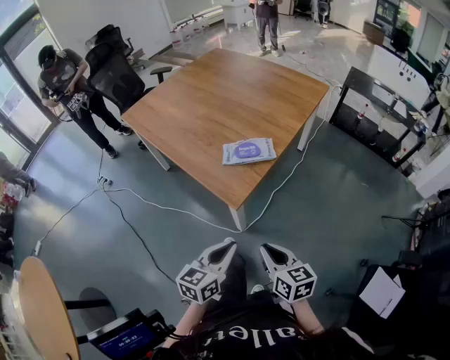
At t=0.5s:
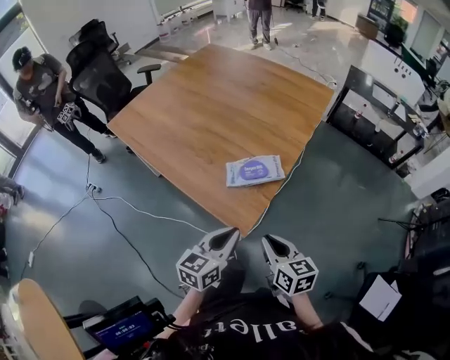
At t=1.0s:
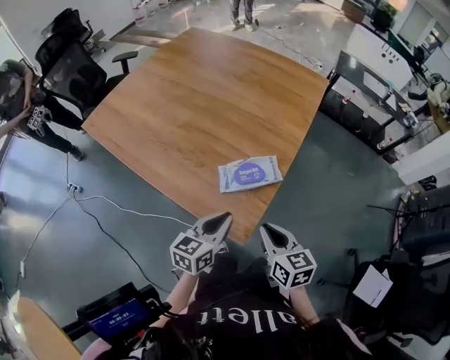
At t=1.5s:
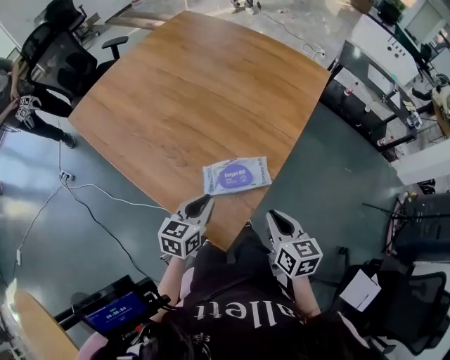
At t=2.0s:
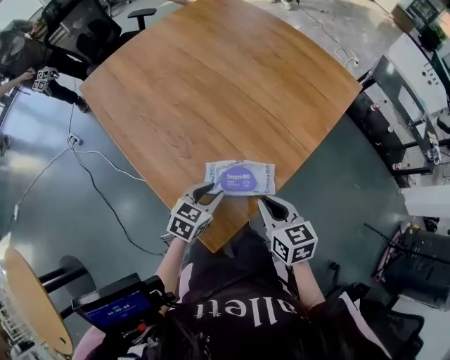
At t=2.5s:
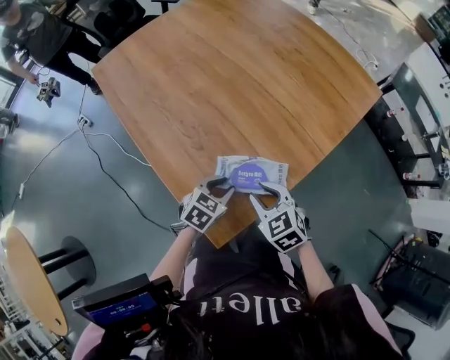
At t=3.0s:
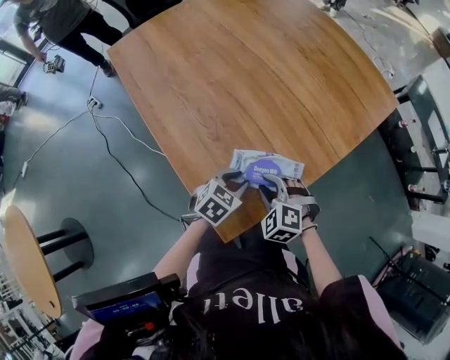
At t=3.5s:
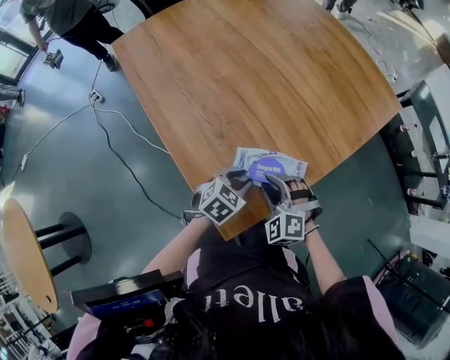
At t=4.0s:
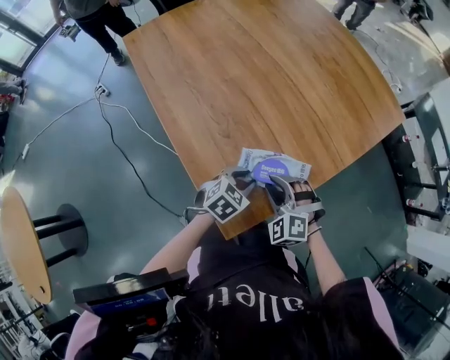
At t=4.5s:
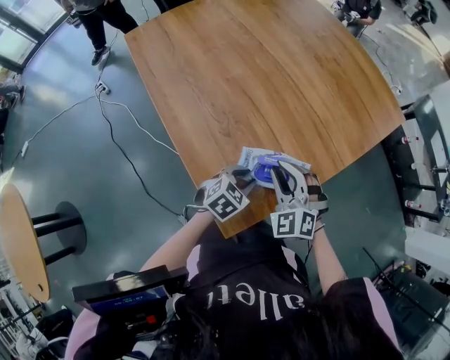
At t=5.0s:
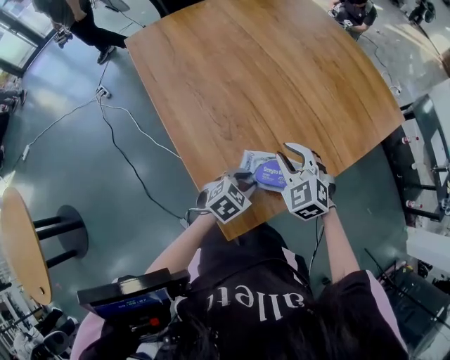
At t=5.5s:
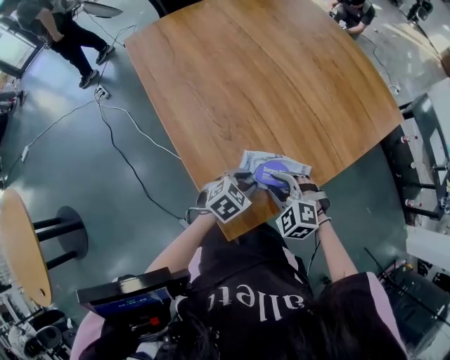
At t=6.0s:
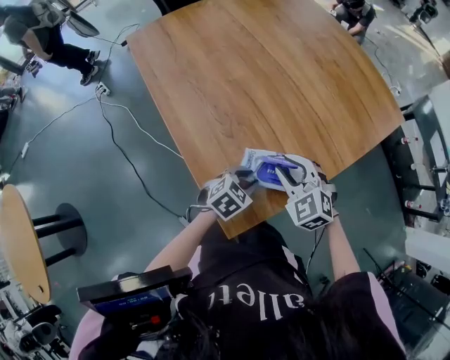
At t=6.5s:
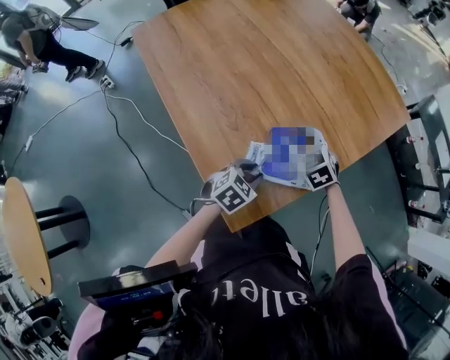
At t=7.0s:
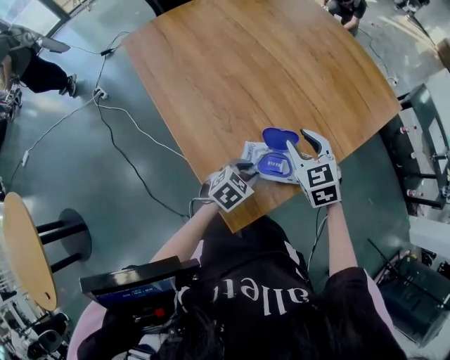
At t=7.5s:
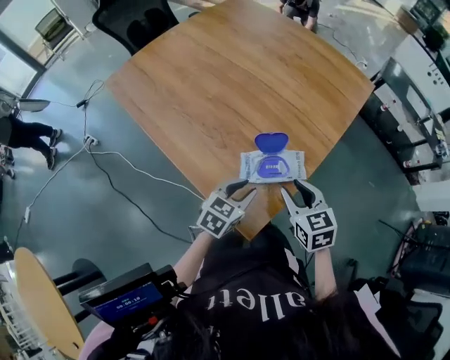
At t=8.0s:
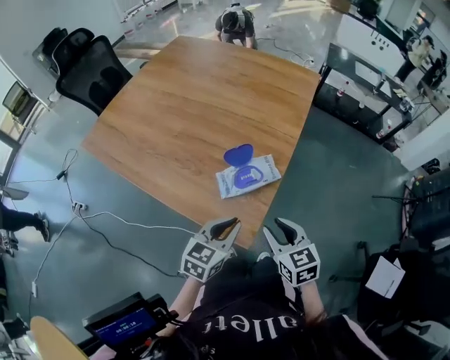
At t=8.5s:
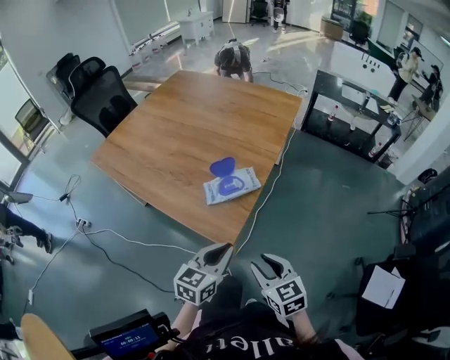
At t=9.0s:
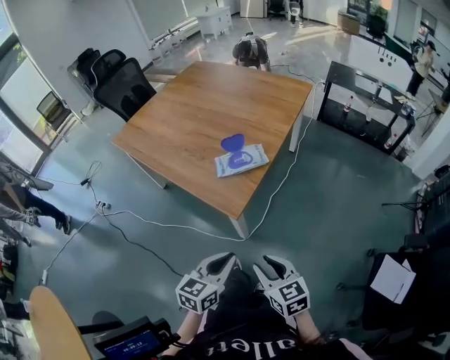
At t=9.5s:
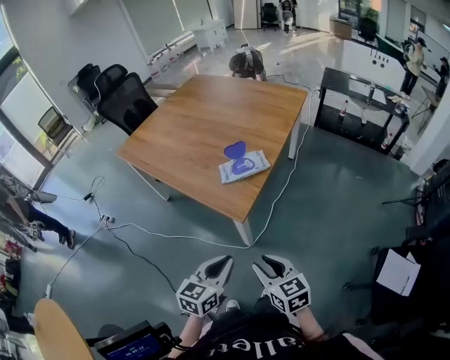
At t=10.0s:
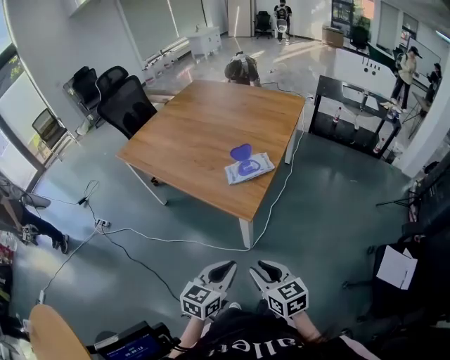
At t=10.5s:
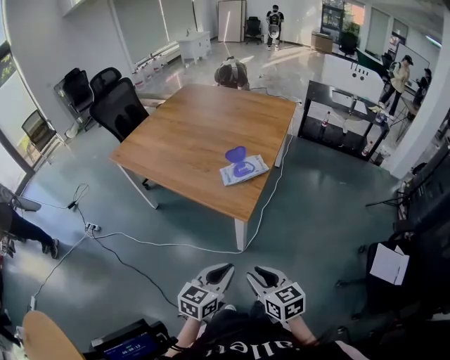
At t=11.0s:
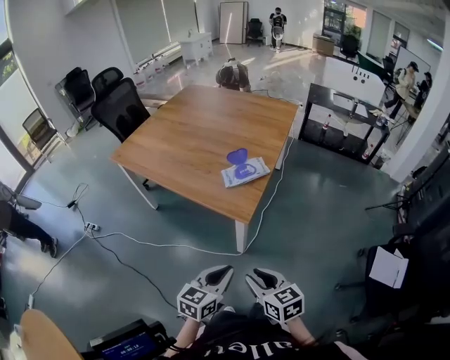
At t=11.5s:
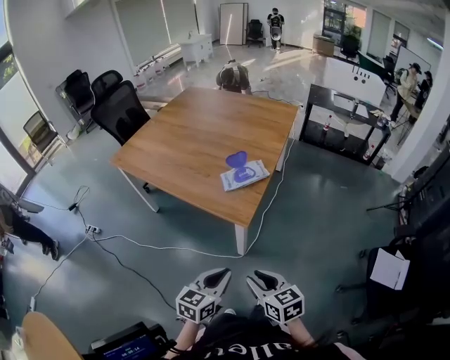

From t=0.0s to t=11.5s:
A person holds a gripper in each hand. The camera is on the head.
From t=0.0s to t=2.0s: Both grippers travel together forward, some 40 cm. The left gripper swivels roughly 20 degrees, and opens up.
From t=2.0s to t=4.0s: The right gripper shifts about 10 cm downward and to the left, rolls counterclockwise, seen from behind, by some 80 degrees, and opens its fingers.
From t=4.0s to t=6.0s: The right gripper goes forward and backward, roughly 10 cm each way, reversing 2 times.
From t=6.0s to t=7.5s: The left gripper goes some 10 cm upward. The right gripper goes roughly 10 cm backward, and rolls clockwise, seen from behind, by roughly 50 degrees.
From t=7.5s to t=9.5s: The grippers both shift backward by some 40 cm. The left gripper closes.
From t=9.5s to t=11.5s: Both grippers move to the left, about 5 cm.

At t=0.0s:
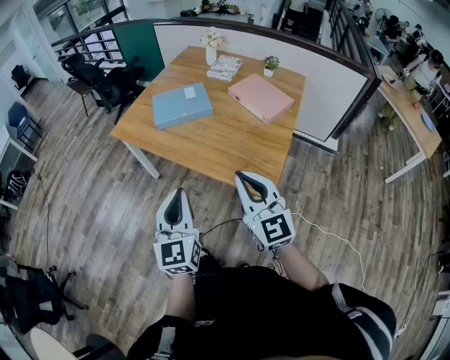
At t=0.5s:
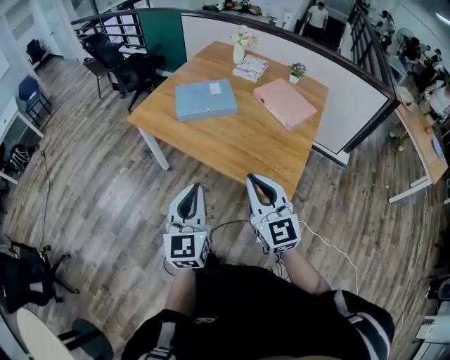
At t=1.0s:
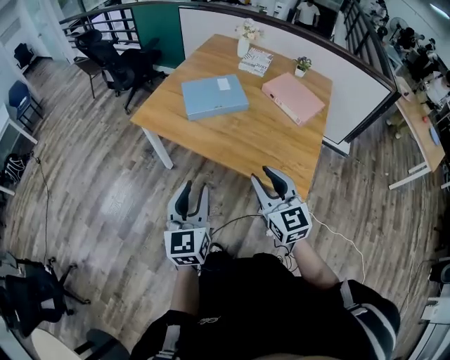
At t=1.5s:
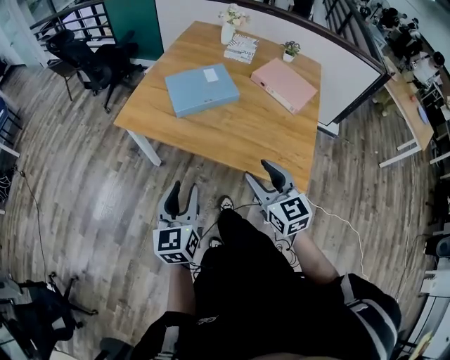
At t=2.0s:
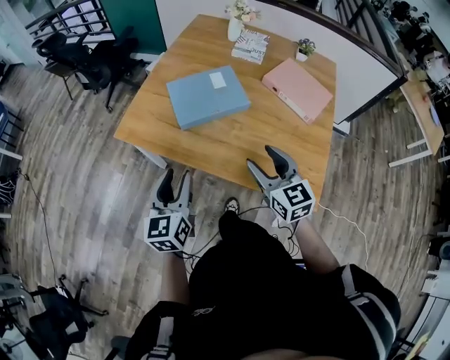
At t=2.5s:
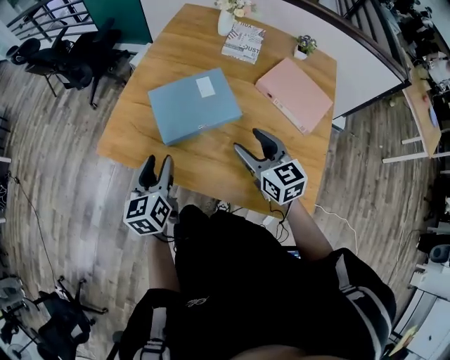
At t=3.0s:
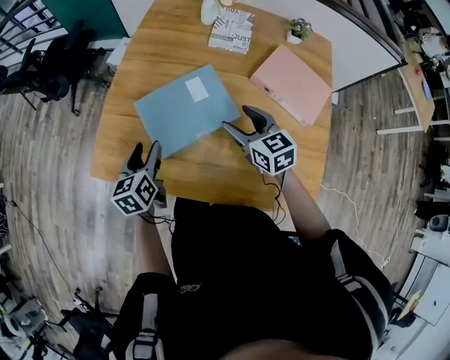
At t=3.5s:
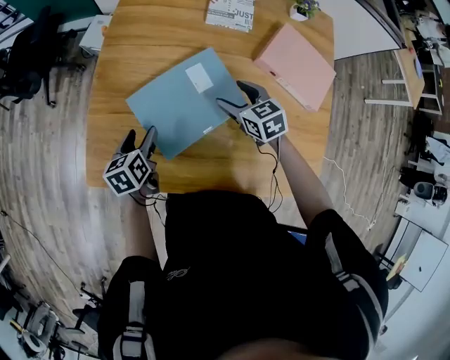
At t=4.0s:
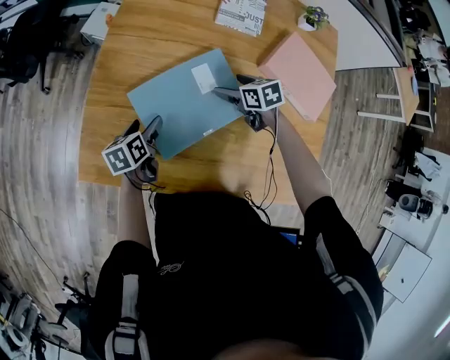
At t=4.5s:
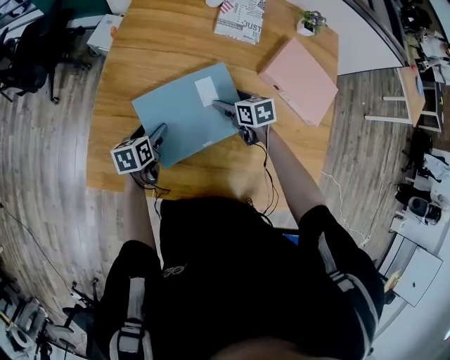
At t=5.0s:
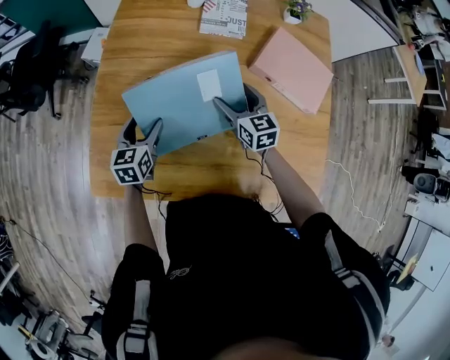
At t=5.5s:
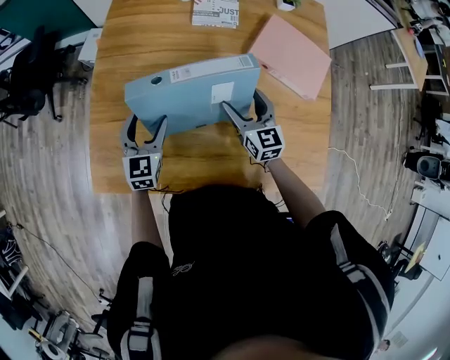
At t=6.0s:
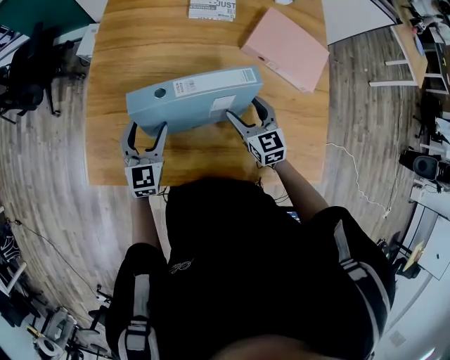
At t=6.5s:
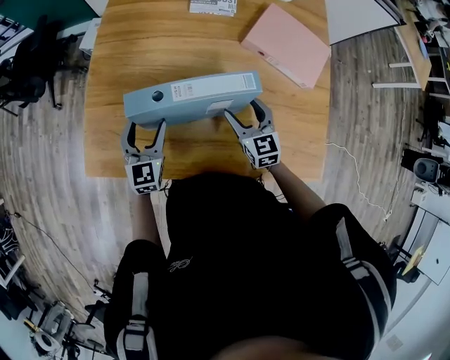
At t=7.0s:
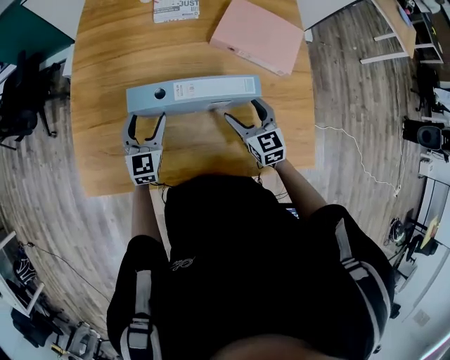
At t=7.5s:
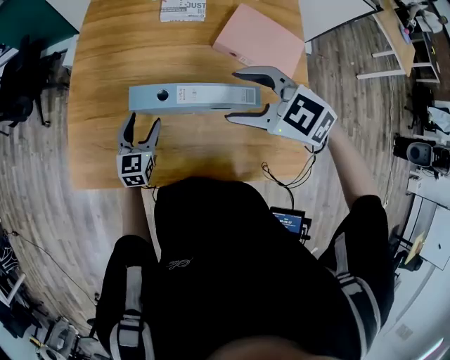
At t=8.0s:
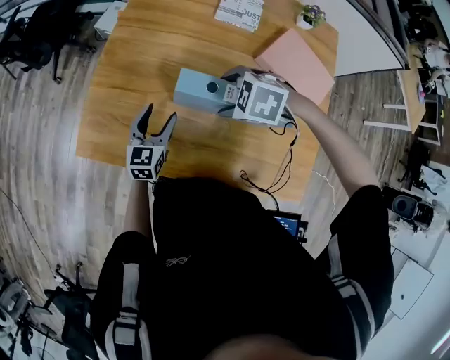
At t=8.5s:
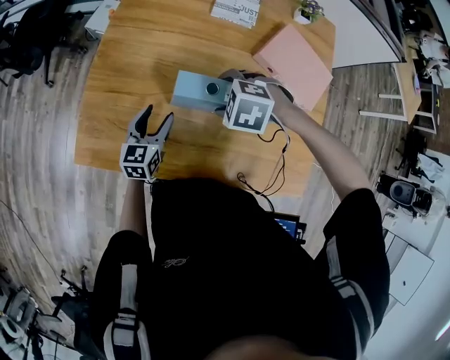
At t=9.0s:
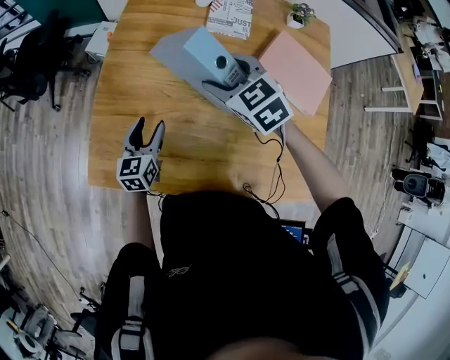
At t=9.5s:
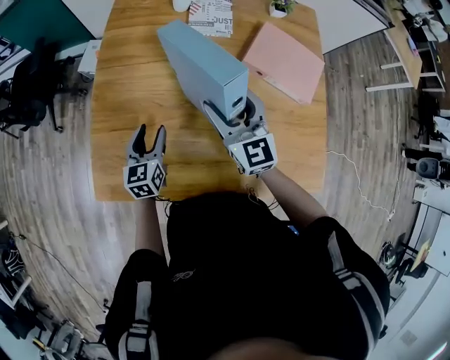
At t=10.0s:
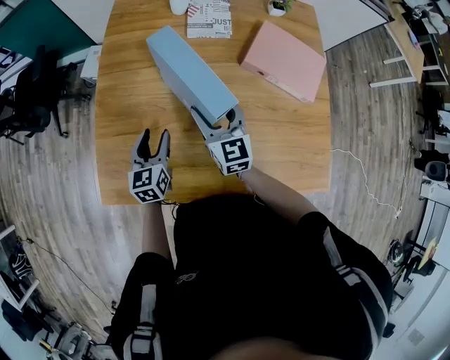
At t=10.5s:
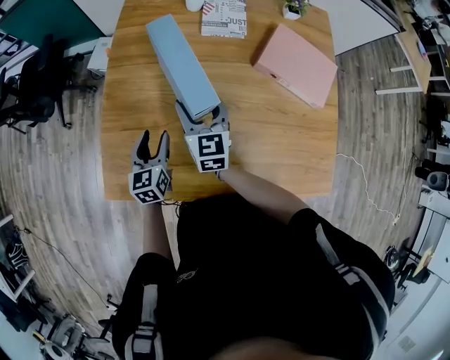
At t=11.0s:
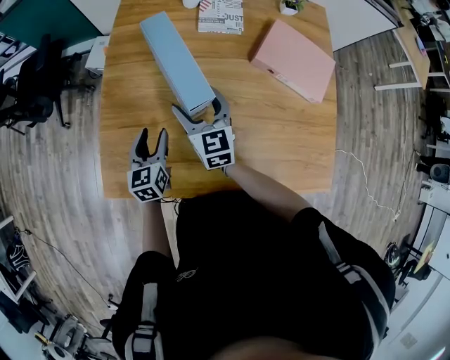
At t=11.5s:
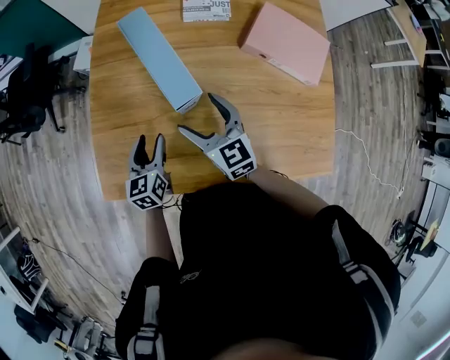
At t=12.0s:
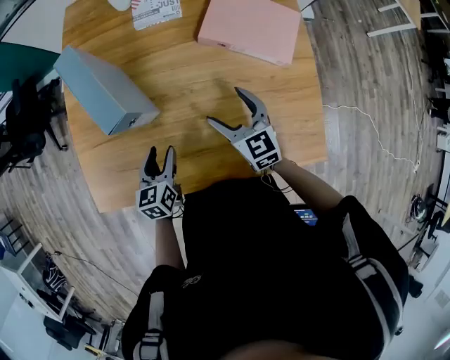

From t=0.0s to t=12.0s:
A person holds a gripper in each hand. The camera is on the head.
From t=0.0s to t=2.0s: The left gripper is displaced forward and to the left by about 30 cm, swivels about 20 degrees, and opens its fingers, while the right gripper moves forward and downward, roughly 30 cm, swivels about 20 degrees, and opens.
From t=2.0s to t=4.0s: The grippers both shift forward and downward by approximately 50 cm. The left gripper tips its fingers downward by about 30 degrees, while the right gripper tips its fingers downward by some 40 degrees, and opens its fingers.
From t=4.0s to t=6.0s: The left gripper goes about 10 cm upward and to the right, and rotates around the line of its fingers by some 50 degrees, clockwise from behind. Meanwhile the right gripper travels backward, upward and to the right by roughly 15 cm, and swivels about 40 degrees.
From t=6.0s to t=8.0s: The right gripper points its fingers some 40 degrees further downward.
From t=8.0s to t=10.0s: The left gripper moves some 5 cm, while the right gripper reaches roughly 10 cm upward, then returns, and angles its fingers upward, by approximately 60 degrees.
From t=10.0s to t=12.0s: Both grippers travel together to the right and backward, some 15 cm.

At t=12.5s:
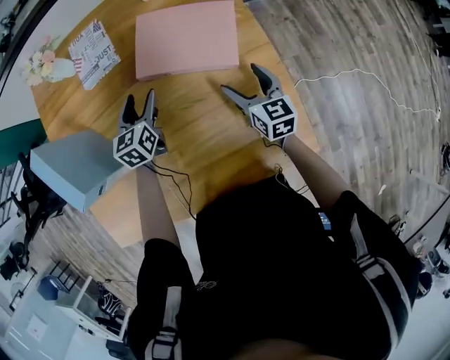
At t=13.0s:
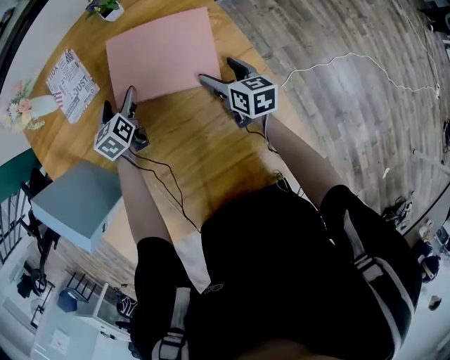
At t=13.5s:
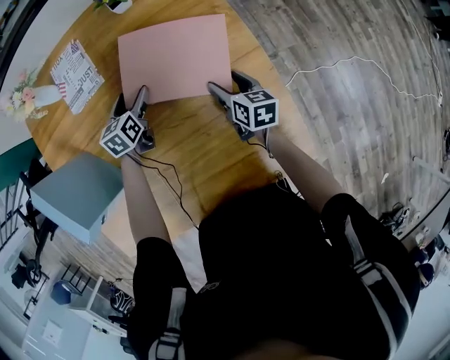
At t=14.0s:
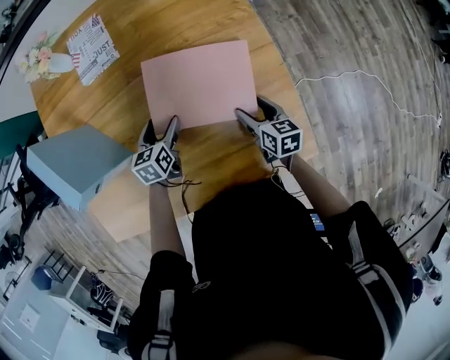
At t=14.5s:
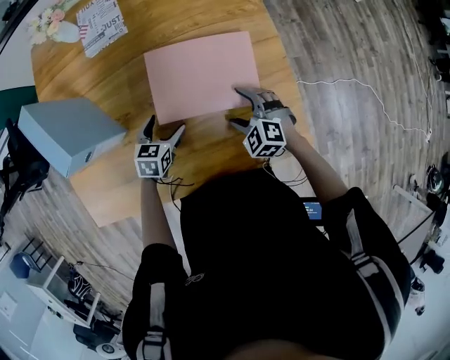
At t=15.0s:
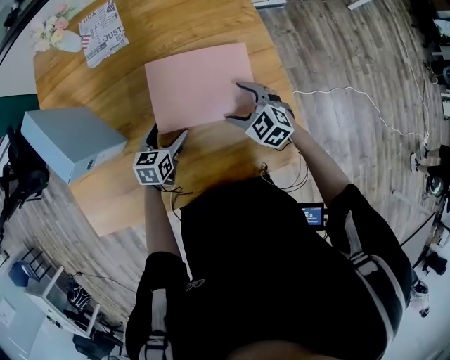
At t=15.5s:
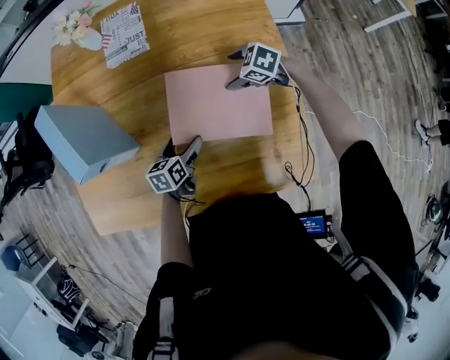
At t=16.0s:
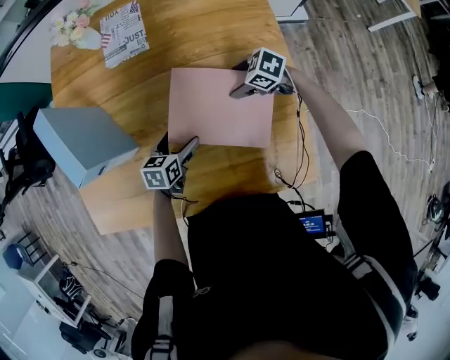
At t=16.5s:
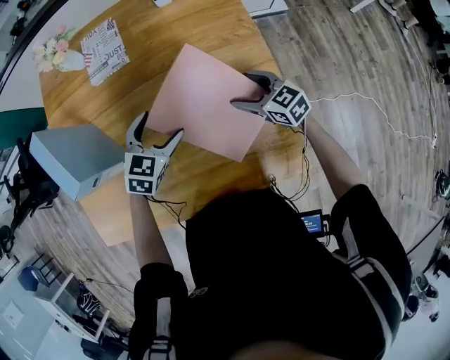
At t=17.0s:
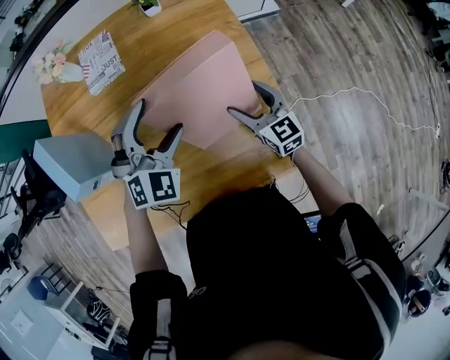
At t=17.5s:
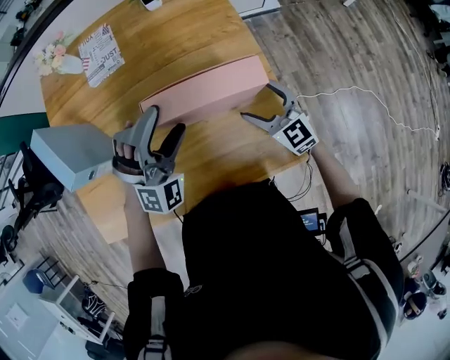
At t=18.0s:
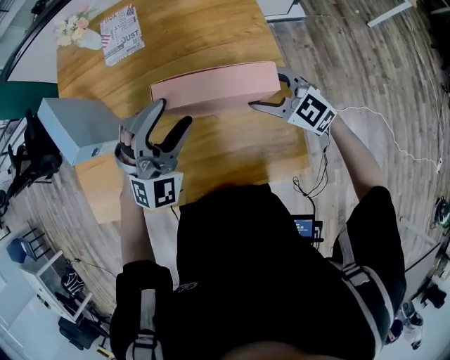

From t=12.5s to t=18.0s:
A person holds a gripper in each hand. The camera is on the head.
From t=12.5s to t=14.5s: The right gripper moves backward, downward and to the left, approximately 15 cm, and twists approximately 60 degrees counterclockwise, seen from behind; the left gripper is displaced backward and downward by roughly 20 cm, and swivels some 30 degrees.
From t=14.5s to t=16.0s: The right gripper shifts by about 15 cm, and swivels approximately 40 degrees.
From t=16.0s to t=18.0s: The right gripper goes some 15 cm upward, and changes its angle by roughly 40 degrees, while the left gripper goes some 25 cm upward, and twists some 90 degrees clockwise, seen from behind.
